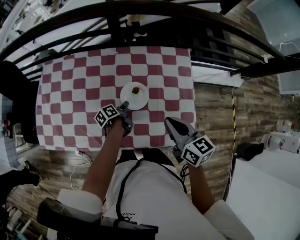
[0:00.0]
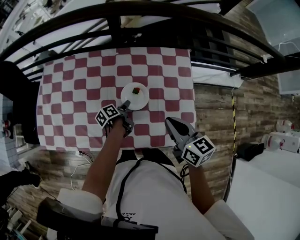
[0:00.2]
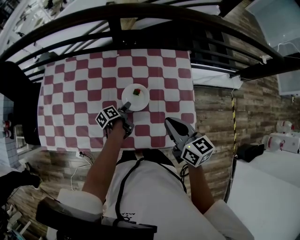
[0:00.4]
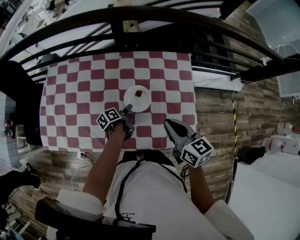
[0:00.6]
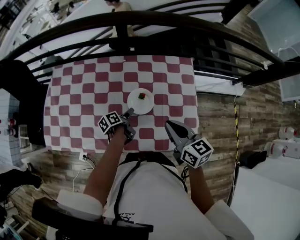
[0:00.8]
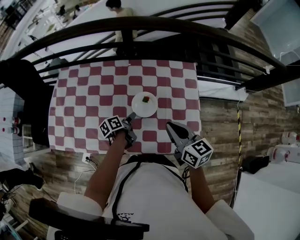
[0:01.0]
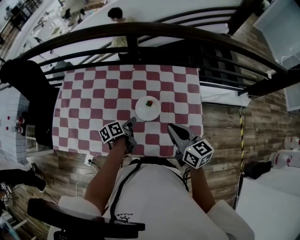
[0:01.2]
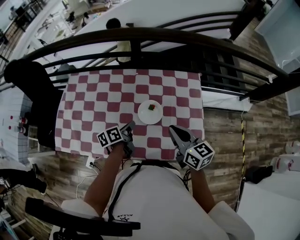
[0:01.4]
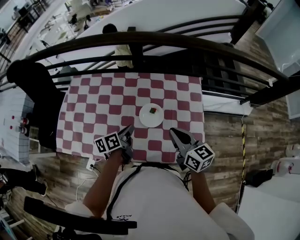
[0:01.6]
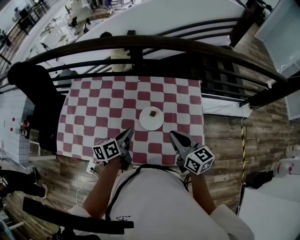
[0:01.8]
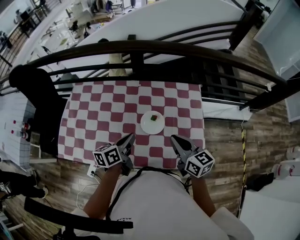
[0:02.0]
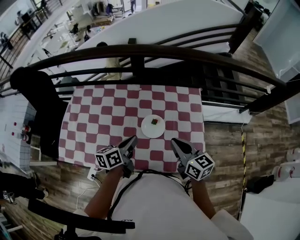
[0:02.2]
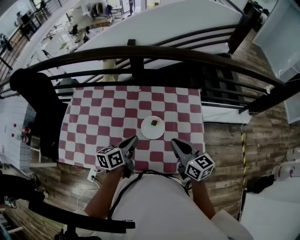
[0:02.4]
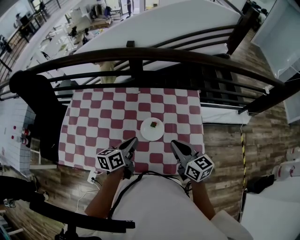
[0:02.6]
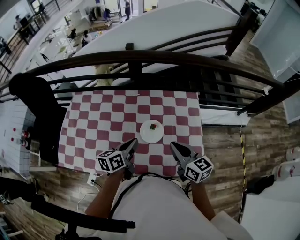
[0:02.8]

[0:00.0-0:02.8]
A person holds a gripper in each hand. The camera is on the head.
0:00.0 to 0:01.4: The right gripper moves roughly 5 cm.

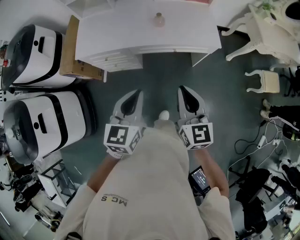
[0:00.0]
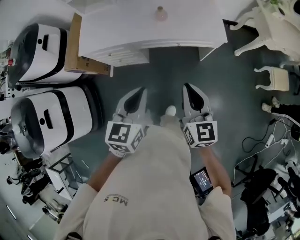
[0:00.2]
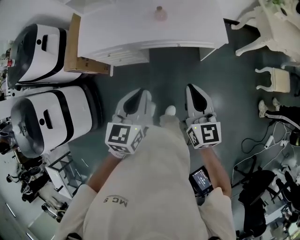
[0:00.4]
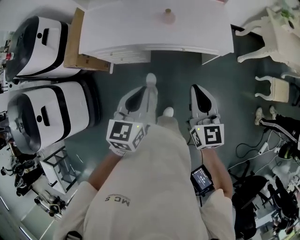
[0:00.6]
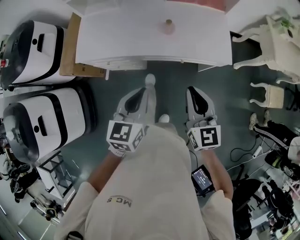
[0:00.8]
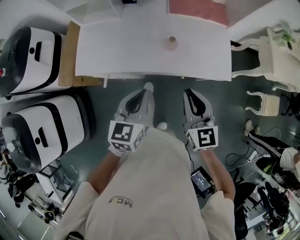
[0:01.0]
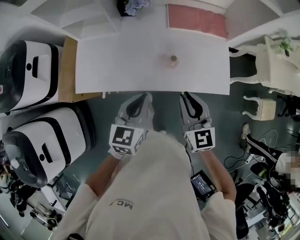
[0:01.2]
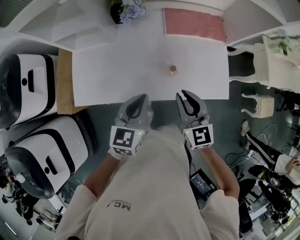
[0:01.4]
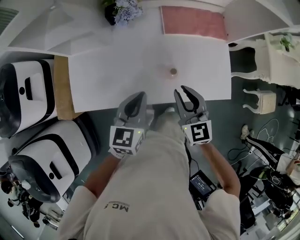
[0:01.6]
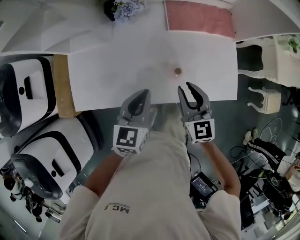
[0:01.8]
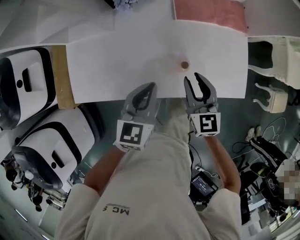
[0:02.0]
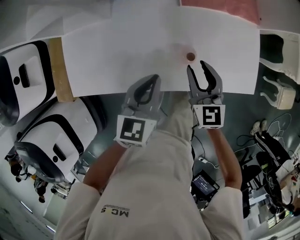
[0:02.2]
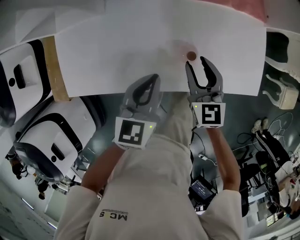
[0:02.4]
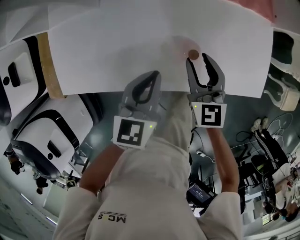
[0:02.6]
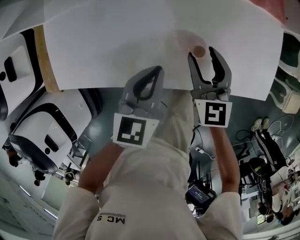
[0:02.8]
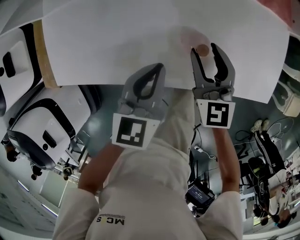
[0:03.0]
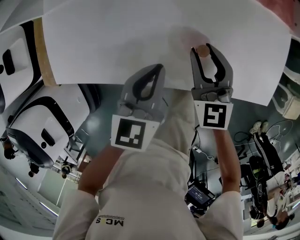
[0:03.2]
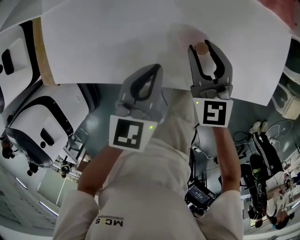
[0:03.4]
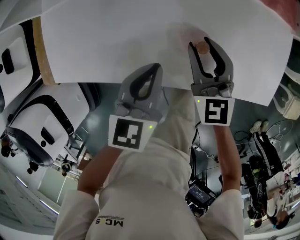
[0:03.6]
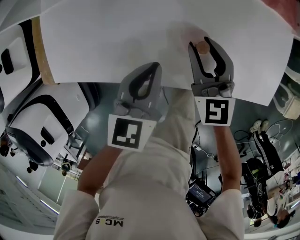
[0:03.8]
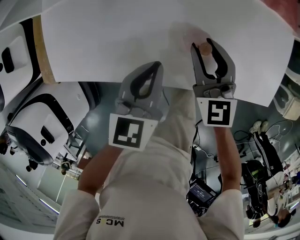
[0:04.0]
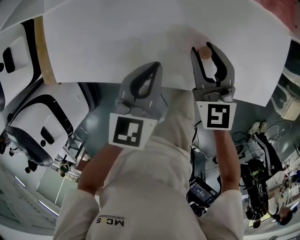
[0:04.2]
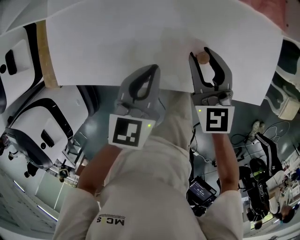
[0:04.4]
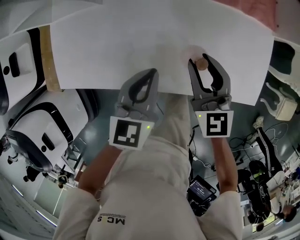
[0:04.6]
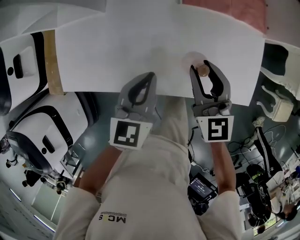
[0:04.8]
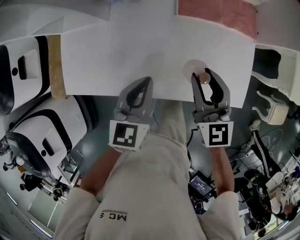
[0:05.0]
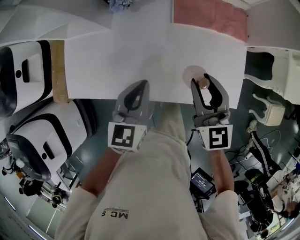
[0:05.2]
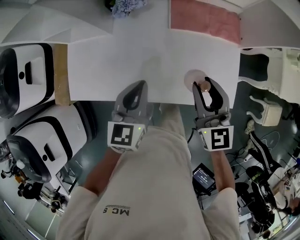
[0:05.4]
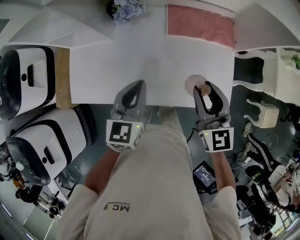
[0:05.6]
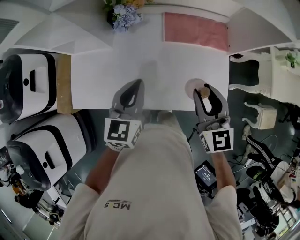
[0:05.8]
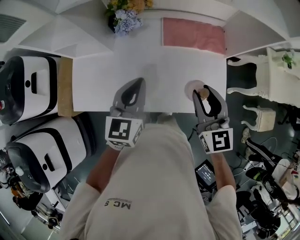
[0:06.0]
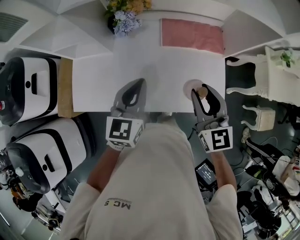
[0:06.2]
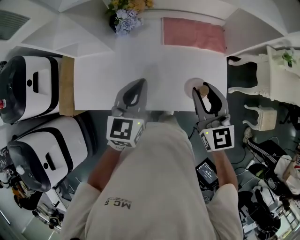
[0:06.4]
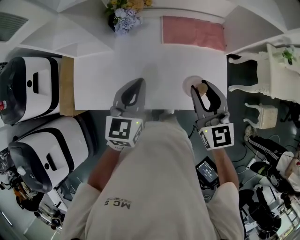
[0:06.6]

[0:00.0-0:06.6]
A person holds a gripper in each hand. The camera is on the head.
0:00.0 to 0:01.6: Both grippers are carried forward, about 50 cm.
0:01.6 to 0:03.2: The right gripper goes approximately 25 cm downward and forward. Meanwhile the left gripper shifts some 20 cm downward.
0:03.2 to 0:05.0: The two grippers go roughly 15 cm upward.
0:05.0 to 0:06.6: Both grippers travel together upward, about 15 cm.

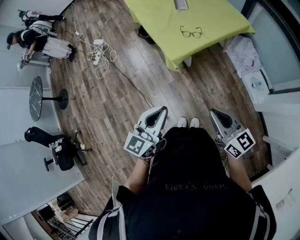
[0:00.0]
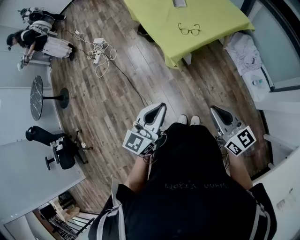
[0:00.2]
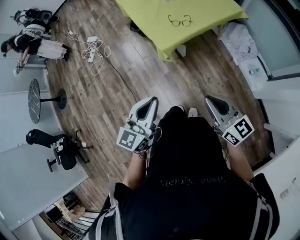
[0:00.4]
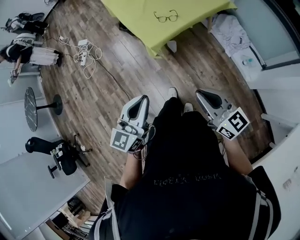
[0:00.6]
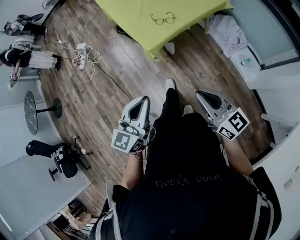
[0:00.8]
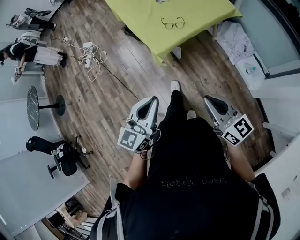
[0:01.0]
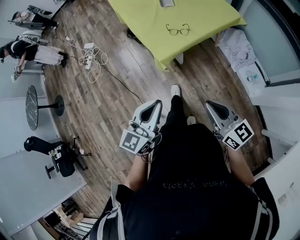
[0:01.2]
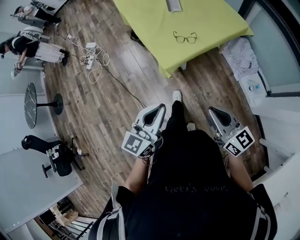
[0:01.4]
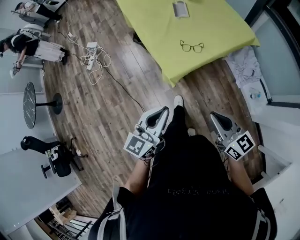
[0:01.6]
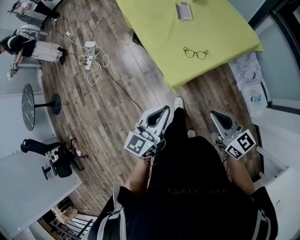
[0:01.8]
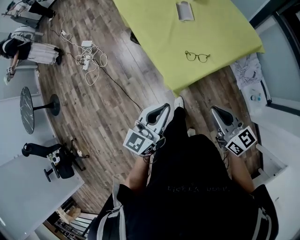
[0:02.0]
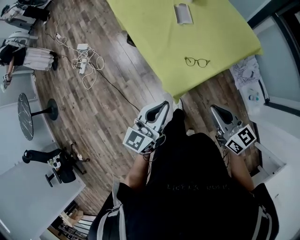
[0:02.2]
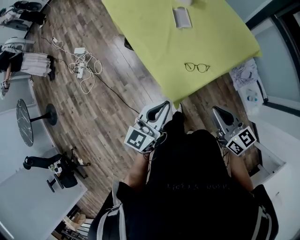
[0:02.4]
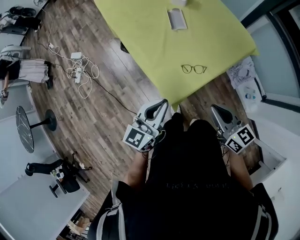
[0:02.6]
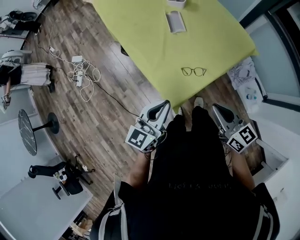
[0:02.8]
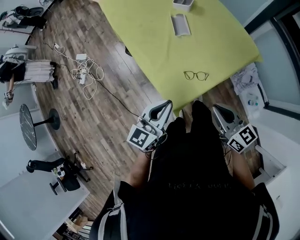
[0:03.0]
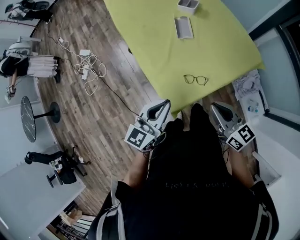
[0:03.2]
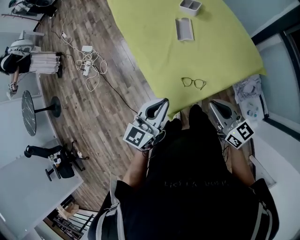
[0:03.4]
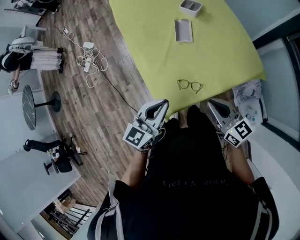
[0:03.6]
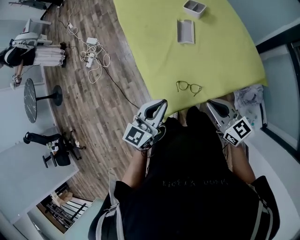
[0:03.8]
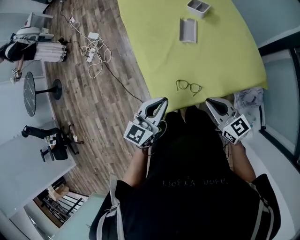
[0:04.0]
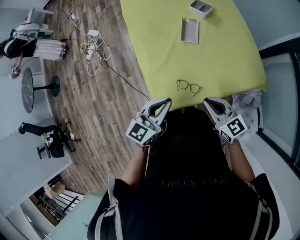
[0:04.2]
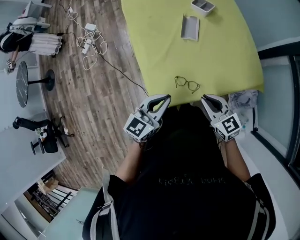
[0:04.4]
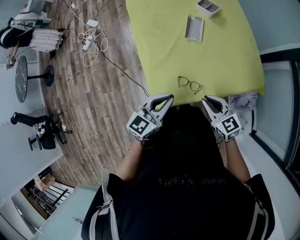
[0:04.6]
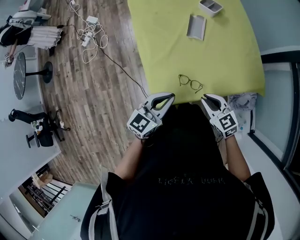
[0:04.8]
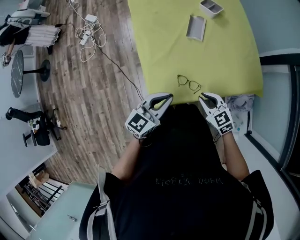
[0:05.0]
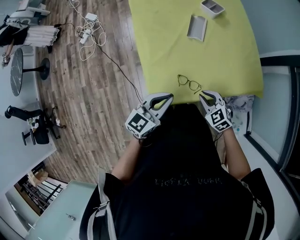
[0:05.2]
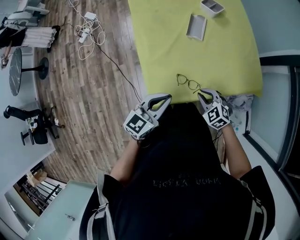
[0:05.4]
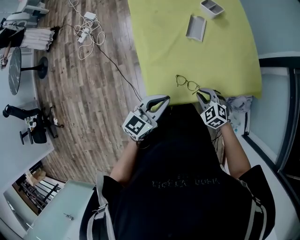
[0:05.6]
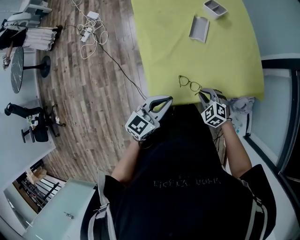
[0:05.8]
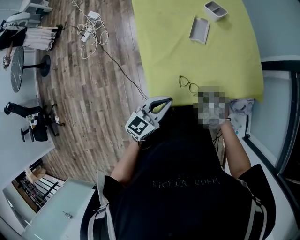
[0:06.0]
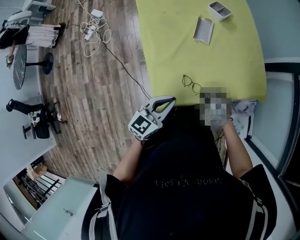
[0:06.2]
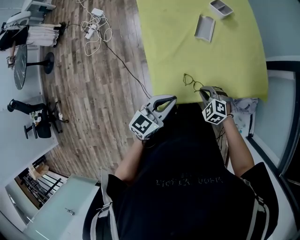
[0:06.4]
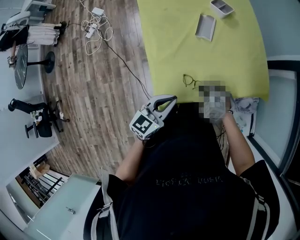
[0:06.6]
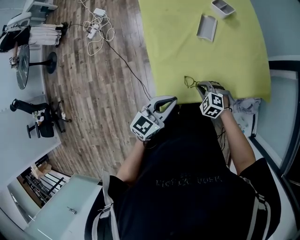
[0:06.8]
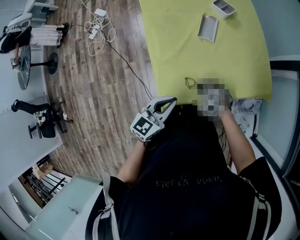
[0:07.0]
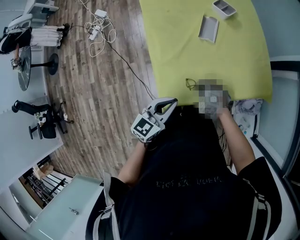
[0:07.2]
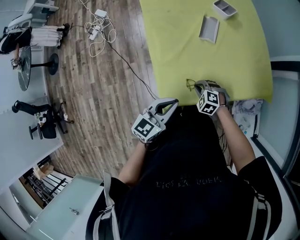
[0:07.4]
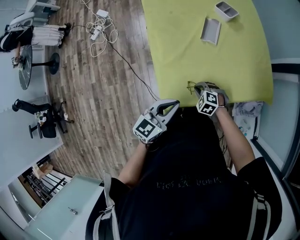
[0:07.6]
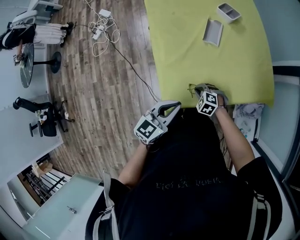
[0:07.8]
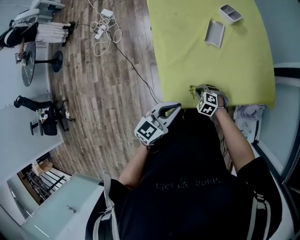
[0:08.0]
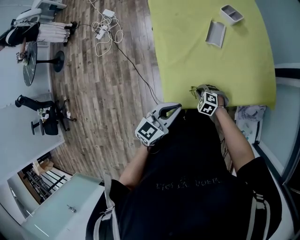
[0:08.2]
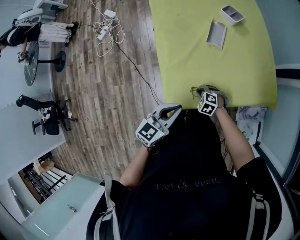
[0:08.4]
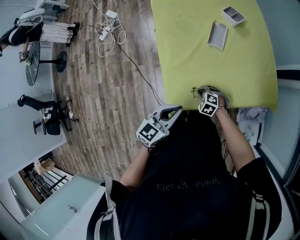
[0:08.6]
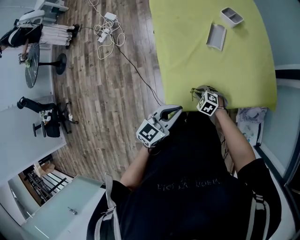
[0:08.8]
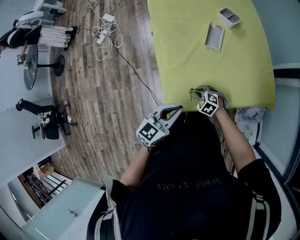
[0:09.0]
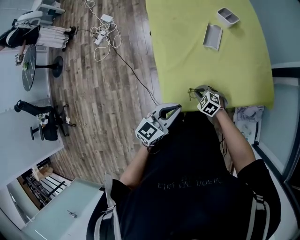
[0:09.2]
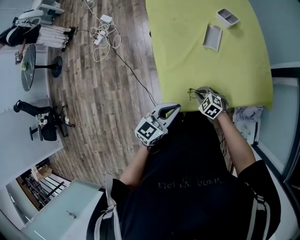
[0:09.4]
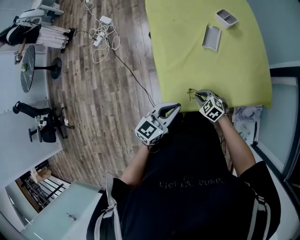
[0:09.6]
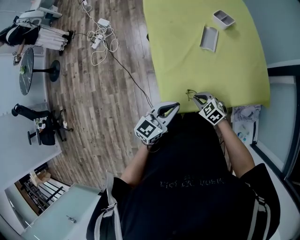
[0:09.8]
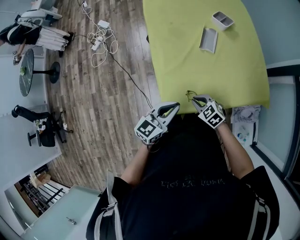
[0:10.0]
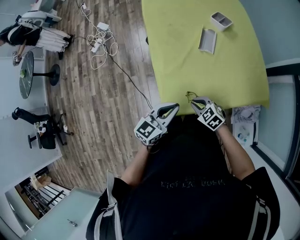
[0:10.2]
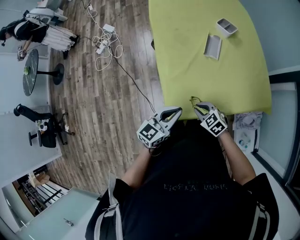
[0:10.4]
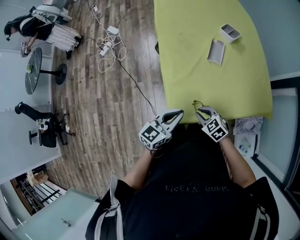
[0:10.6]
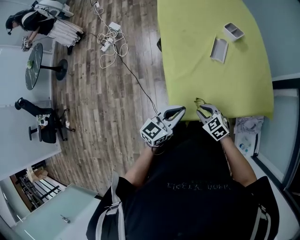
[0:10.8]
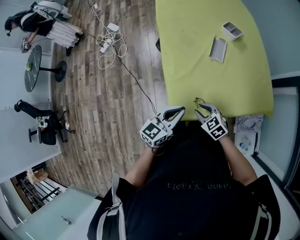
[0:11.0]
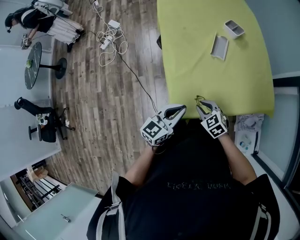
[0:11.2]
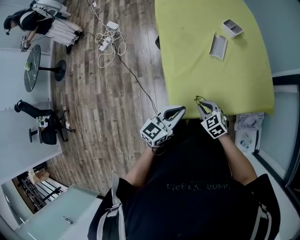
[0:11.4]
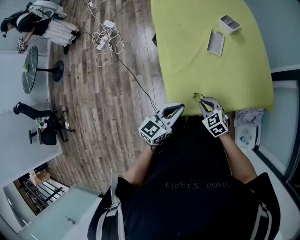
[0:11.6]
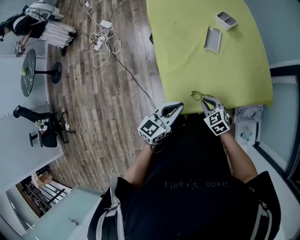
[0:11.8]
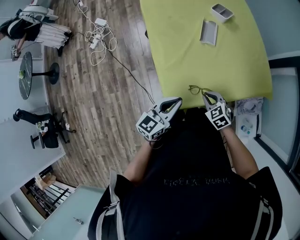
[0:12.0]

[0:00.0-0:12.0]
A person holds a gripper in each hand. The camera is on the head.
0:00.0 to 0:01.6: The two grippers go approximately 15 cm forward.
0:01.6 to 0:03.0: Both grippers travel together forward, some 25 cm.
0:03.0 to 0:04.4: The right gripper is displaced forward, downward and to the right by about 15 cm, and changes its angle by about 30 degrees, while the left gripper travels to the right by roughly 10 cm.
0:04.4 to 0:06.0: The right gripper is displaced downward by roughly 15 cm, and tilts its fingers roughly 40 degrees downward.
0:06.0 to 0:07.6: The right gripper shifts about 10 cm to the left and downward.
0:07.6 to 0:09.0: The grippers make only small movements.
0:09.0 to 0:10.4: The right gripper heads upward, covering some 10 cm, and rotates about 20 degrees.
0:10.4 to 0:12.0: The right gripper ends up about 5 cm from where it was.

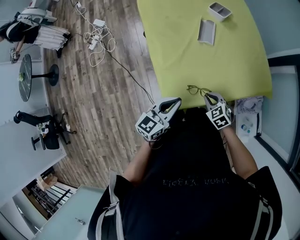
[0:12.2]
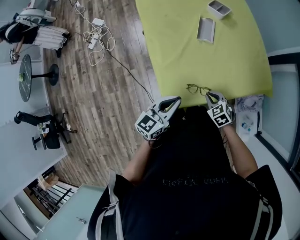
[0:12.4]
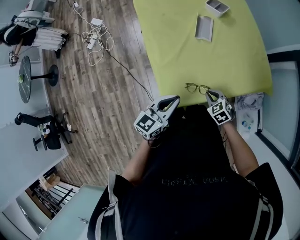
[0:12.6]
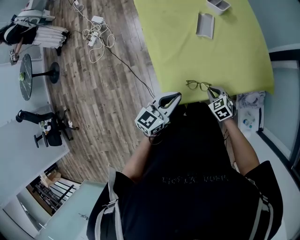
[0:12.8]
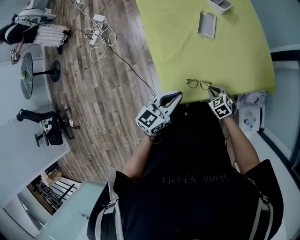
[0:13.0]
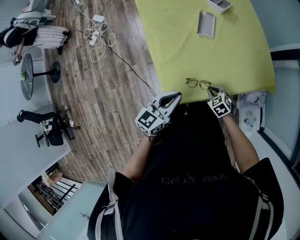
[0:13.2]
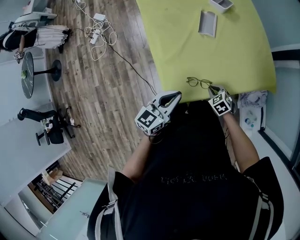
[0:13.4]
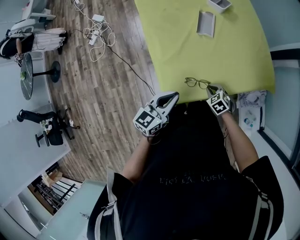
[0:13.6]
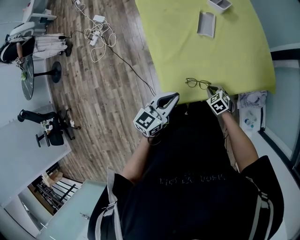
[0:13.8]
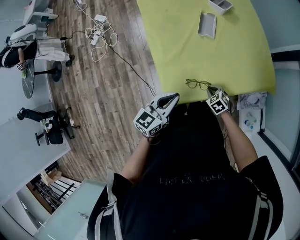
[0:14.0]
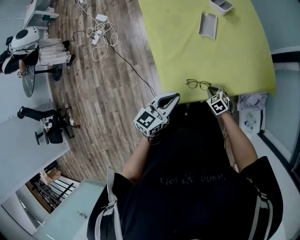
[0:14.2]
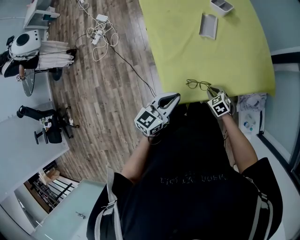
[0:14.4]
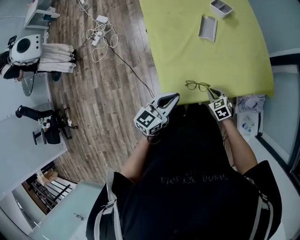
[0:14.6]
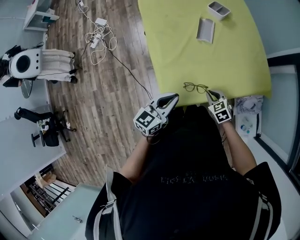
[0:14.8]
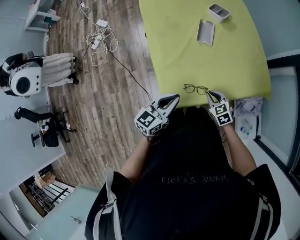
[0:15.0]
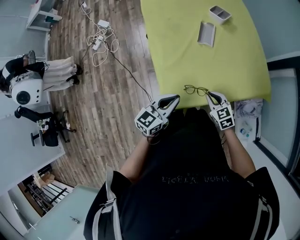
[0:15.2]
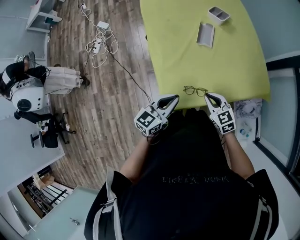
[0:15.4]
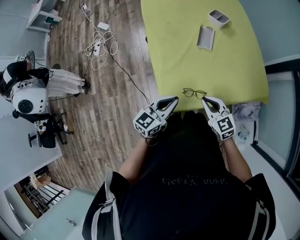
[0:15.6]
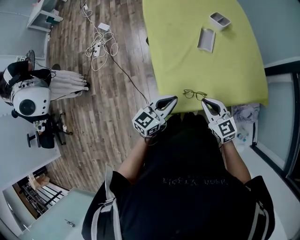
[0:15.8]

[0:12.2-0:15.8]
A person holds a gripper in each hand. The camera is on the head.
0:12.2 to 0:14.0: The right gripper heads downward, covering about 10 cm.
0:14.0 to 0:15.8: The right gripper travels upward by roughly 20 cm, and points its fingers some 40 degrees further upward.
